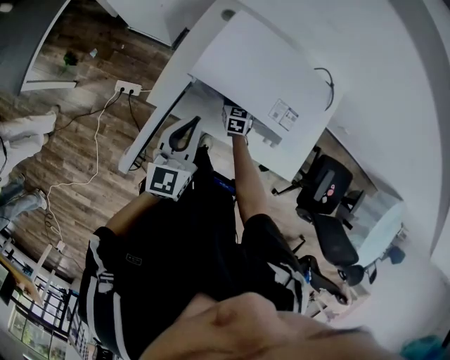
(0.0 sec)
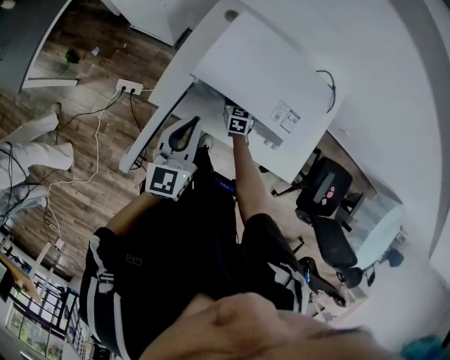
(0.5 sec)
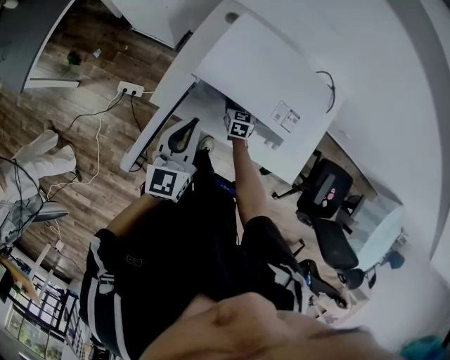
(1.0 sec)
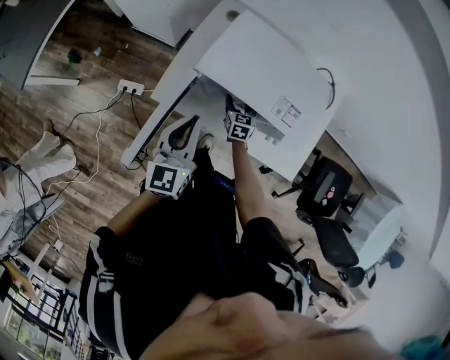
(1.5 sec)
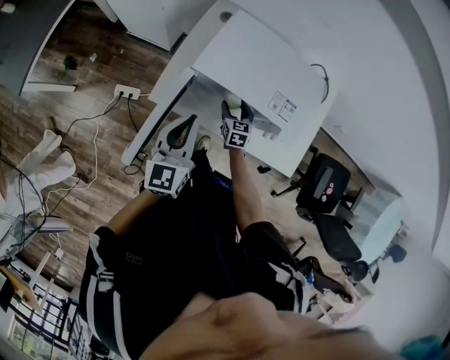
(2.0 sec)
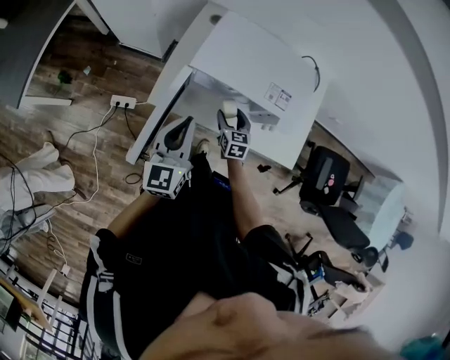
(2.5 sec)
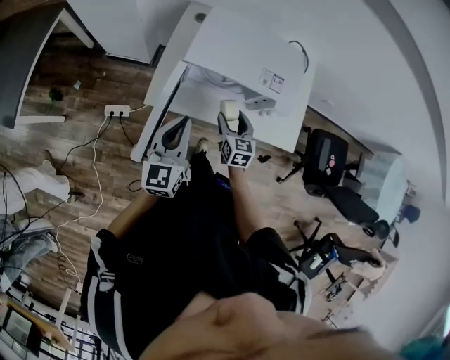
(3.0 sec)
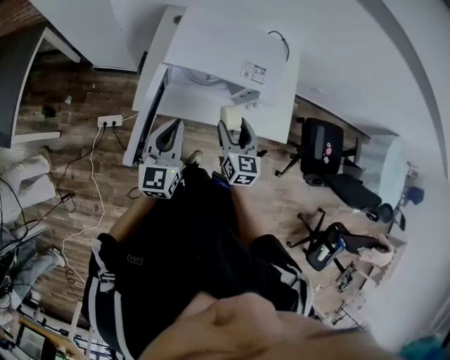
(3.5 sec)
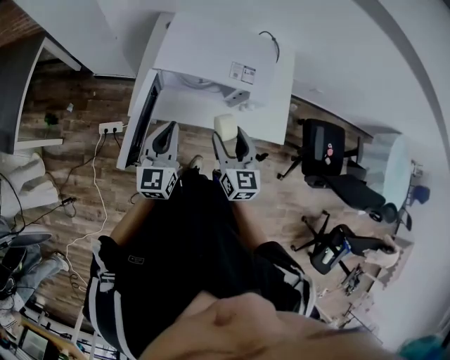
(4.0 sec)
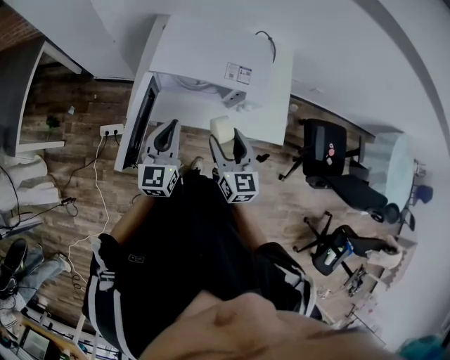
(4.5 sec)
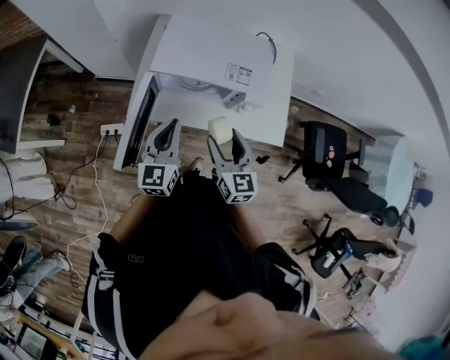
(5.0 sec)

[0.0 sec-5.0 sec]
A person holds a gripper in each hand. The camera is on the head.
0.0 sec to 2.5 sec: The right gripper heads backward and upward, covering roughly 15 cm; the left gripper is displaced backward by roughly 5 cm.
2.5 sec to 5.0 sec: The right gripper shifts about 25 cm upward and backward, and turns by some 20 degrees. Meanwhile the left gripper moves to the right, about 5 cm.

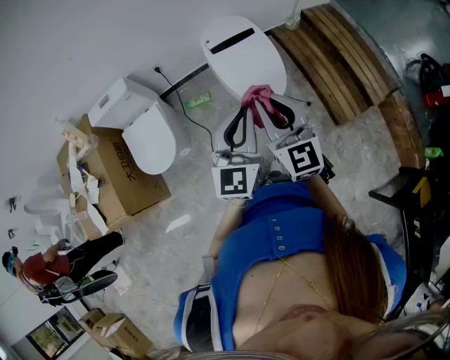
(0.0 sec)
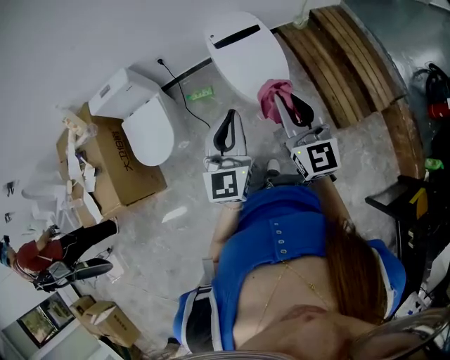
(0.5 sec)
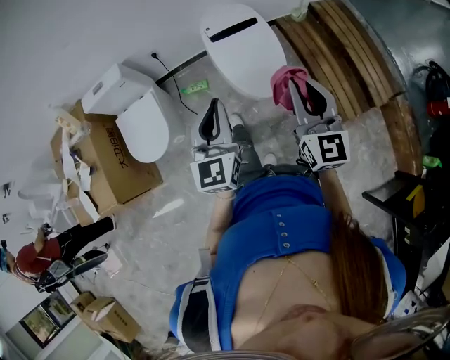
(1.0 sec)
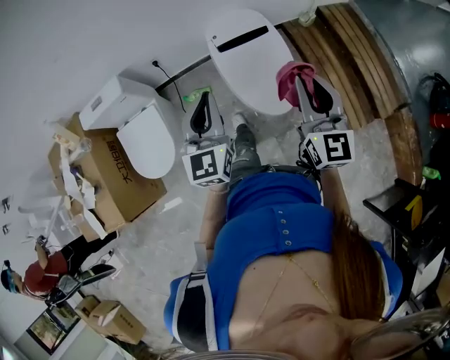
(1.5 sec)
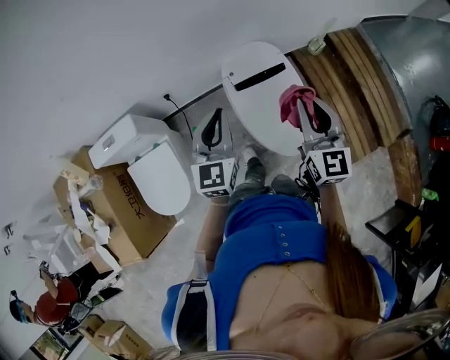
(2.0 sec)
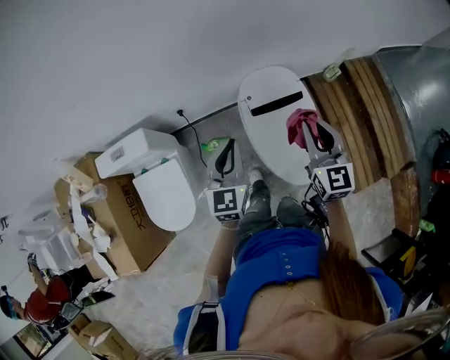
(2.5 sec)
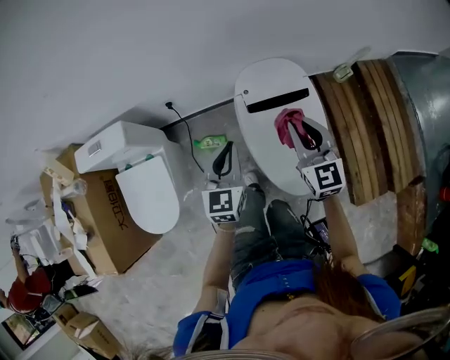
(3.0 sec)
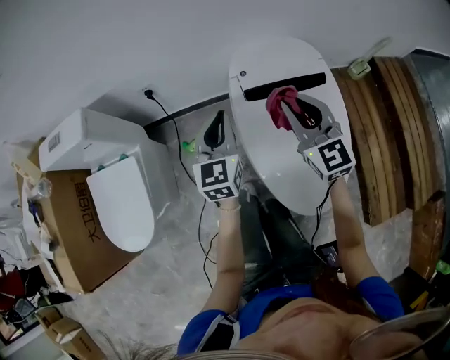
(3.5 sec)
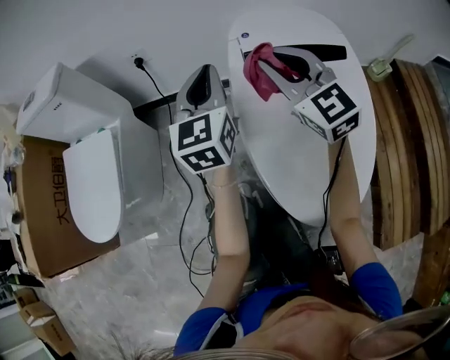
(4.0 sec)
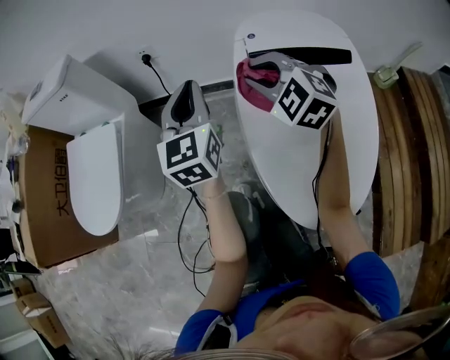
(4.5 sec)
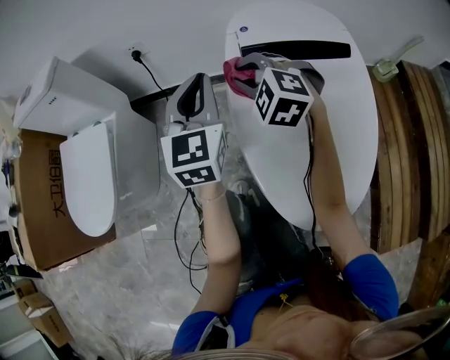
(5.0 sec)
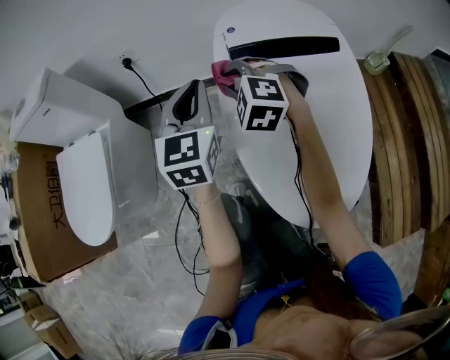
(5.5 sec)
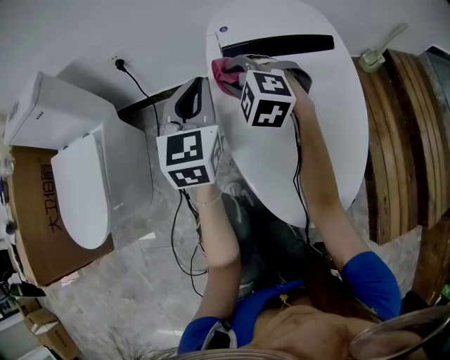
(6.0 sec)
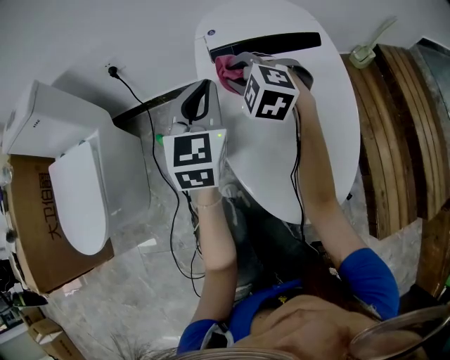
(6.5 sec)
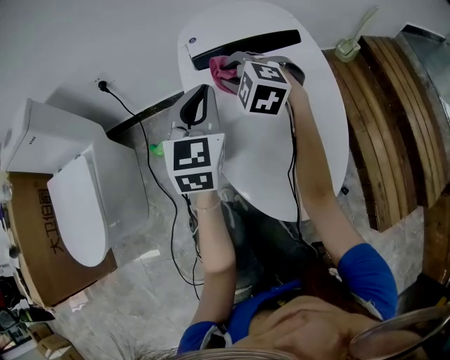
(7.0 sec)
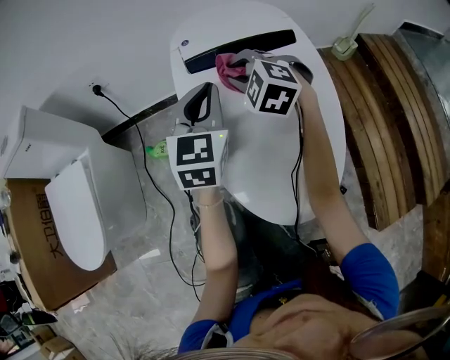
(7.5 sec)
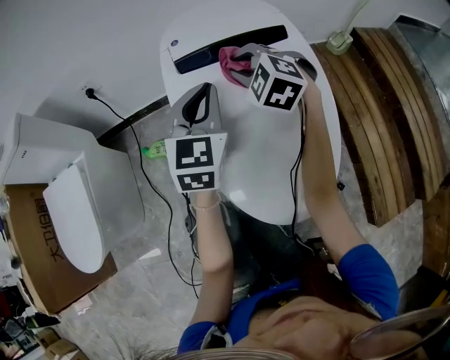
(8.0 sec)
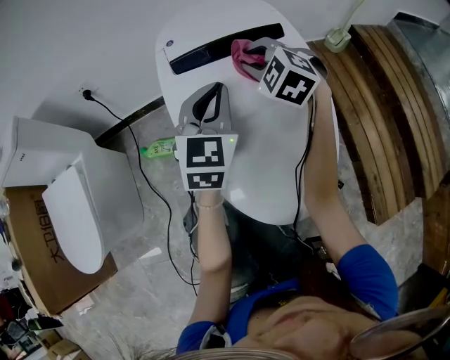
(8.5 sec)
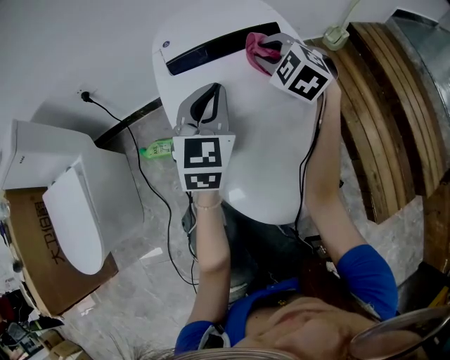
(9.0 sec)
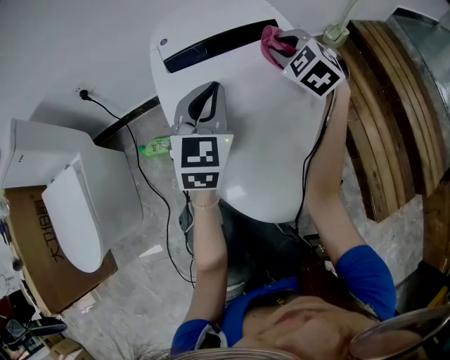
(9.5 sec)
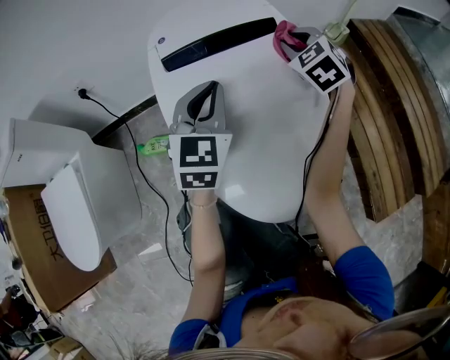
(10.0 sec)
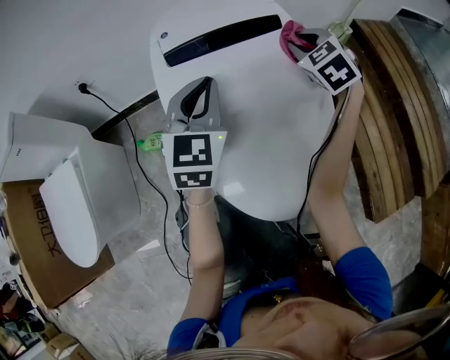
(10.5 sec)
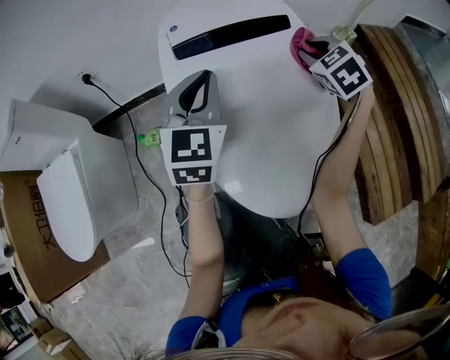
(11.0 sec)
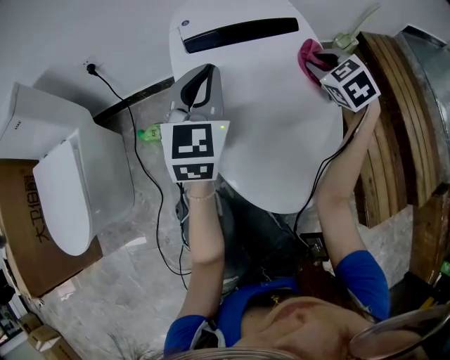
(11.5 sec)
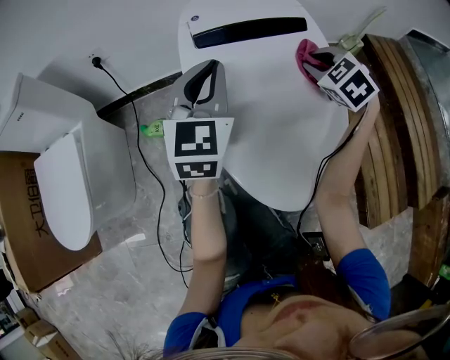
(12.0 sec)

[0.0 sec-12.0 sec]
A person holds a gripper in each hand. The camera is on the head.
0.0 sec to 2.0 sec: The left gripper shifts some 40 cm forward and to the left; the right gripper travels forward by roughly 35 cm.
2.0 sec to 4.0 sec: Both grippers travel together downward, approximately 40 cm. The left gripper changes its angle by roughly 20 degrees, while the right gripper rotates roughly 40 degrees.
4.0 sec to 6.0 sec: The left gripper travels to the left and back again, some 5 cm each way, while the right gripper goes approximately 15 cm downward, and angles its fingers downward, by some 30 degrees.
6.0 sec to 8.0 sec: Both grippers travel together to the right, some 15 cm.
8.0 sec to 10.0 sec: The right gripper heads to the right, covering approximately 15 cm, and swivels roughly 30 degrees.
10.0 sec to 12.0 sec: The right gripper moves backward, some 5 cm, while the left gripper shifts roughly 5 cm to the left.

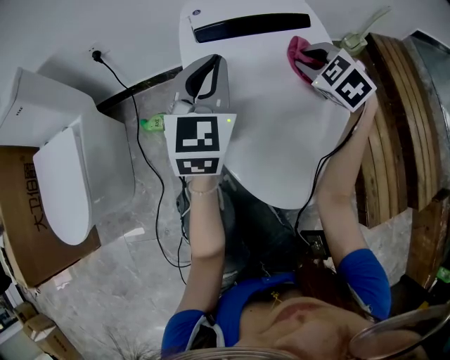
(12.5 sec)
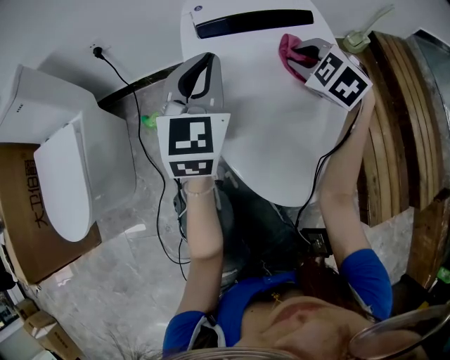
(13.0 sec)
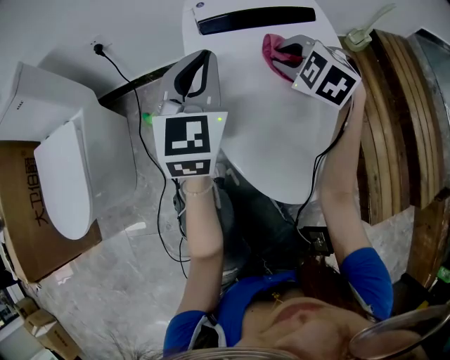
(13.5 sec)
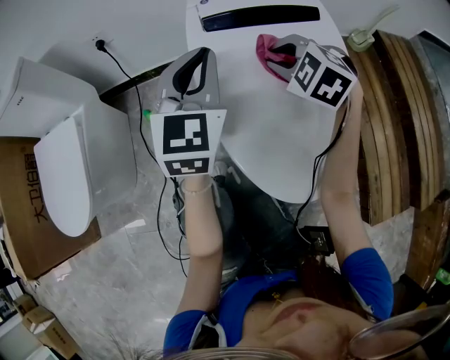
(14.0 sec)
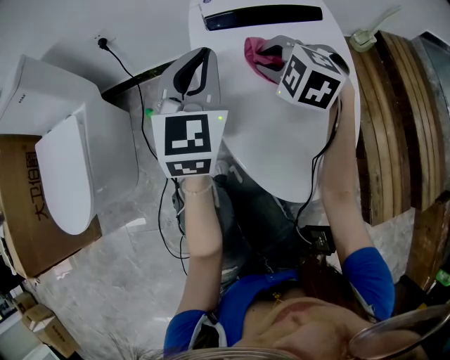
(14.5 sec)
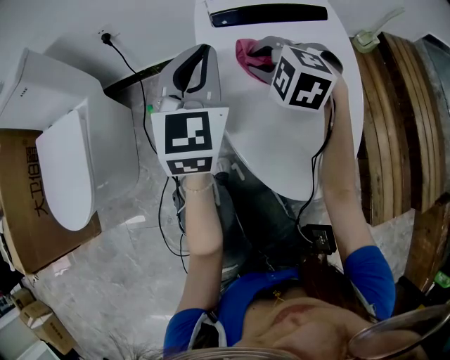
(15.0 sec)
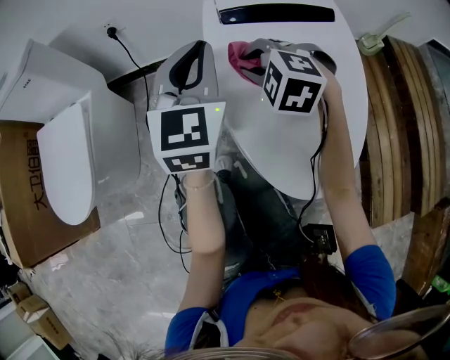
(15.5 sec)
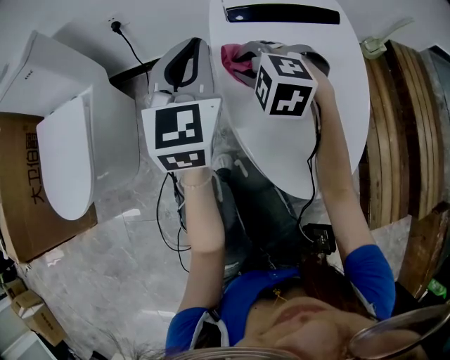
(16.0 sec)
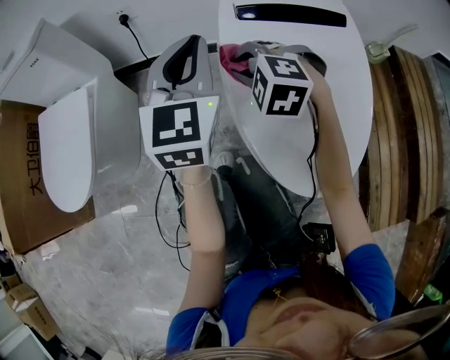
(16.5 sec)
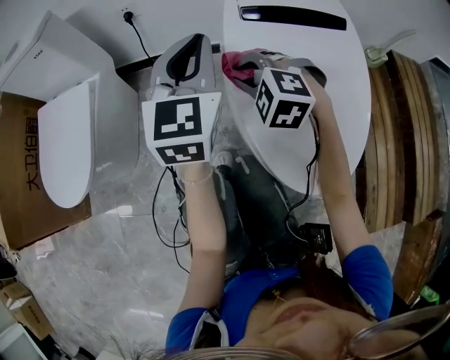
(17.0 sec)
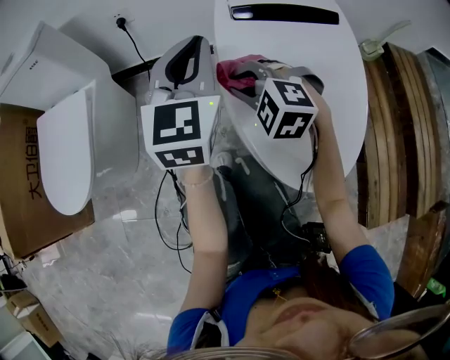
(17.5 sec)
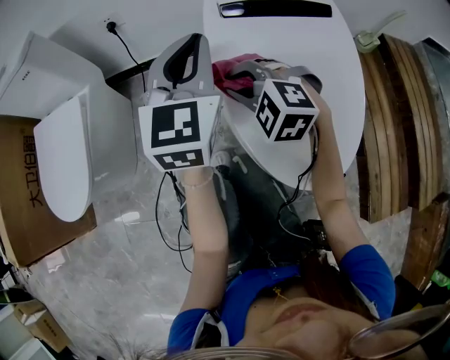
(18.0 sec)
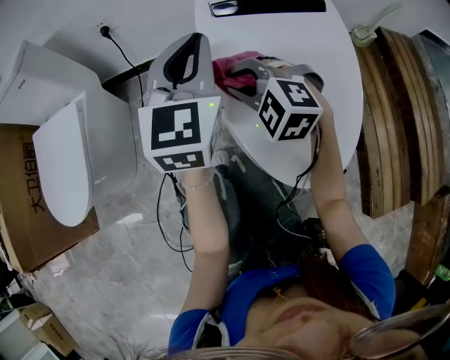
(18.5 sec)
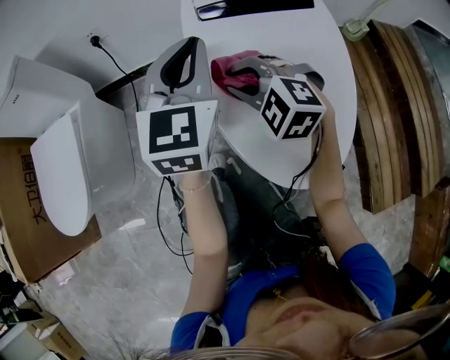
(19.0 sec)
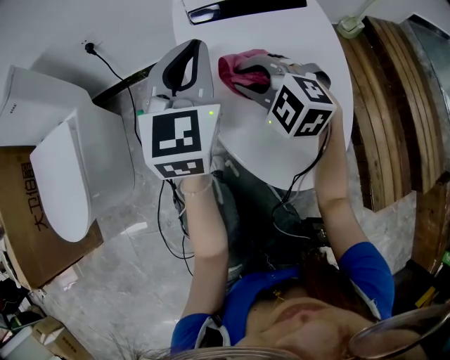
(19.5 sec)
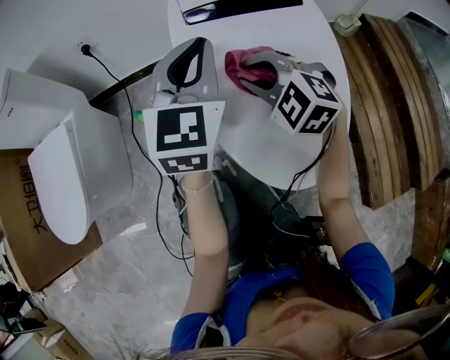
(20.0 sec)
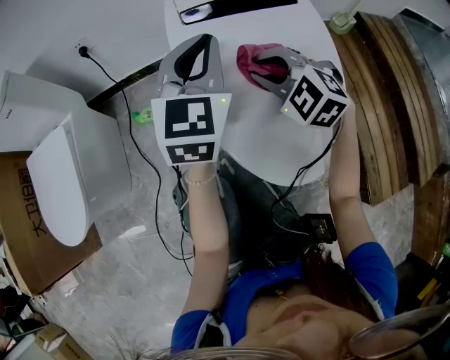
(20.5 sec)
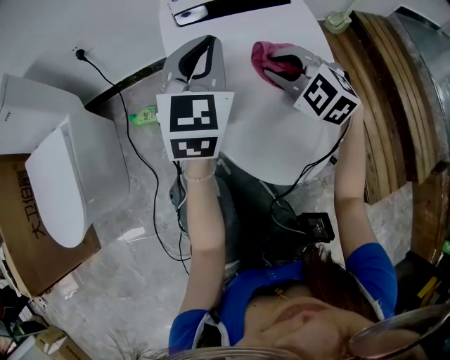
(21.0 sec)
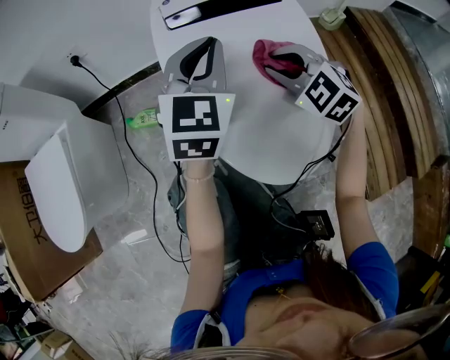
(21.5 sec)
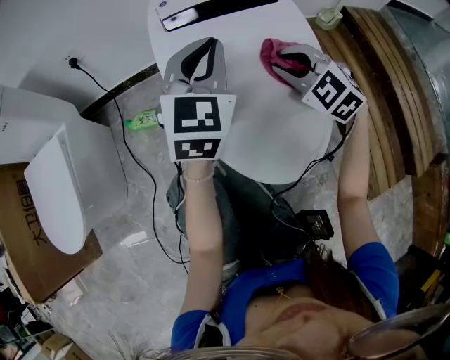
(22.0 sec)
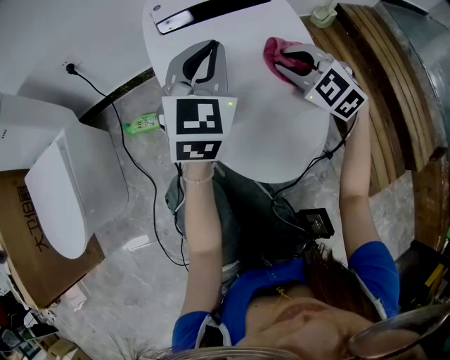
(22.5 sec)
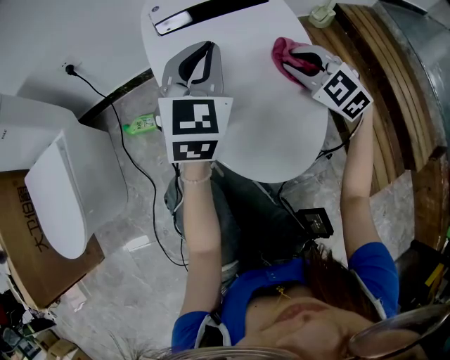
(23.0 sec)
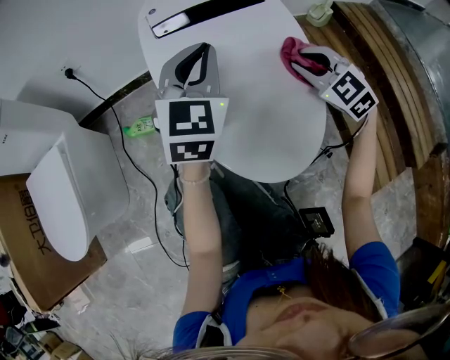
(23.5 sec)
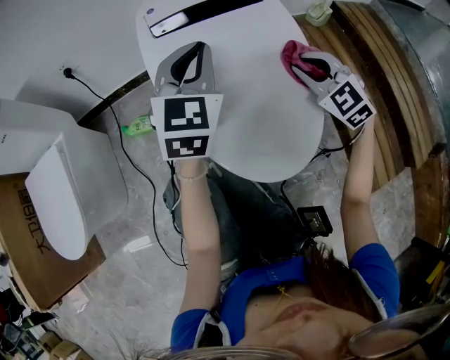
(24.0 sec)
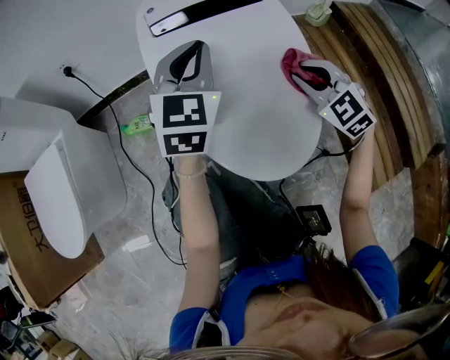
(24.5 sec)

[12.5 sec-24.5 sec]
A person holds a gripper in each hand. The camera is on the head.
12.5 sec to 14.5 sec: The right gripper moves to the left, about 15 cm, and changes its angle by approximately 20 degrees.
14.5 sec to 16.5 sec: The left gripper shifts some 10 cm to the left, while the right gripper shifts about 10 cm to the left.
16.5 sec to 18.5 sec: The right gripper ends up some 5 cm from where it was.
18.5 sec to 20.5 sec: The right gripper moves to the right, some 10 cm; the left gripper shifts some 5 cm to the right.
20.5 sec to 22.5 sec: The right gripper goes some 10 cm to the right, while the left gripper heads to the right, covering roughly 5 cm.
22.5 sec to 24.5 sec: The right gripper travels to the right by roughly 5 cm.
